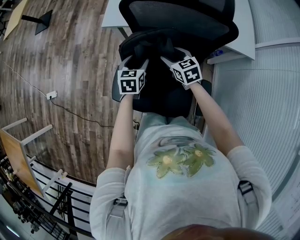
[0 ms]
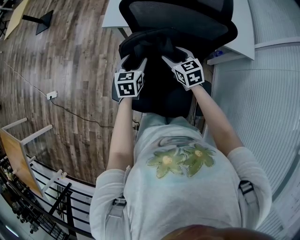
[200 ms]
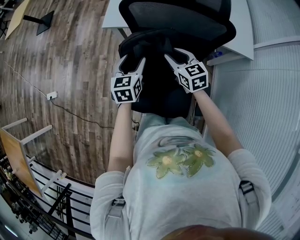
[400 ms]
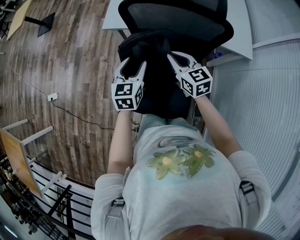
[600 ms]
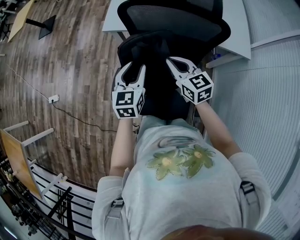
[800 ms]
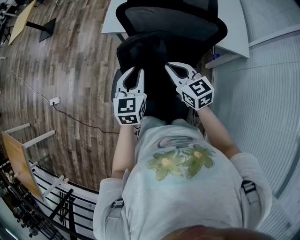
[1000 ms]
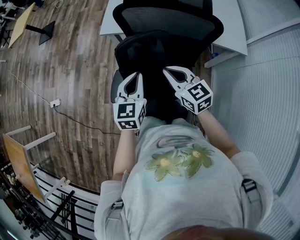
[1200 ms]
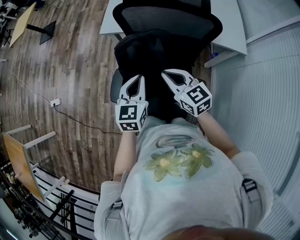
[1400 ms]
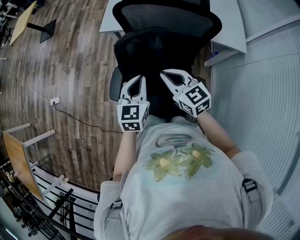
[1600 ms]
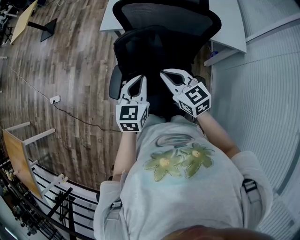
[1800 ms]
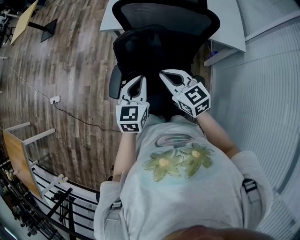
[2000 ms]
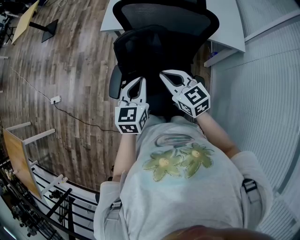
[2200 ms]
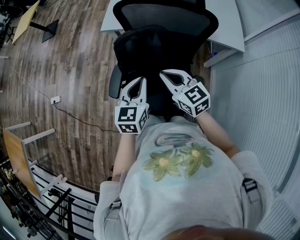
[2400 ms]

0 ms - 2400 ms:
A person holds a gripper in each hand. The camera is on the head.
0 ms - 1200 ms: Both grippers move upward and backward, roughly 20 cm. The left gripper closes its fingers. Meanwhile the right gripper changes its angle by approximately 20 degrees, and closes up.
1200 ms - 2400 ms: Both grippers travel together backward, roughly 5 cm.

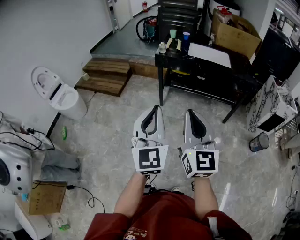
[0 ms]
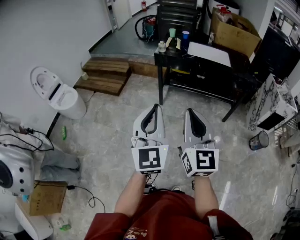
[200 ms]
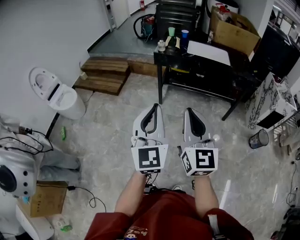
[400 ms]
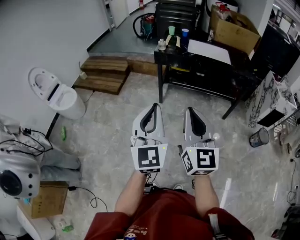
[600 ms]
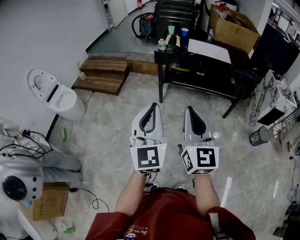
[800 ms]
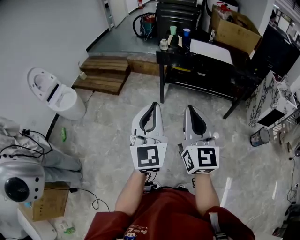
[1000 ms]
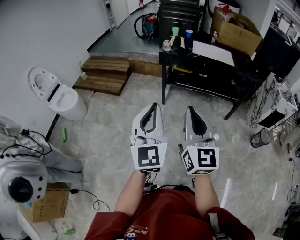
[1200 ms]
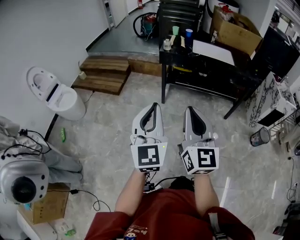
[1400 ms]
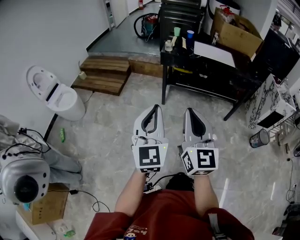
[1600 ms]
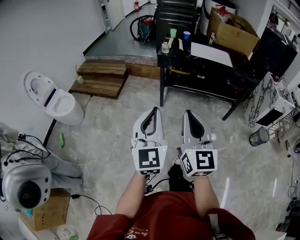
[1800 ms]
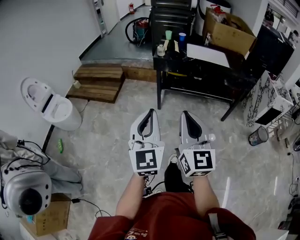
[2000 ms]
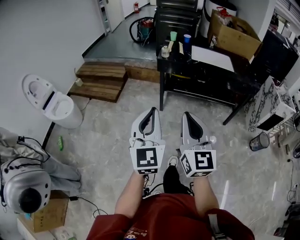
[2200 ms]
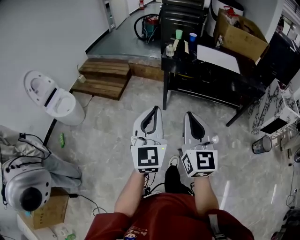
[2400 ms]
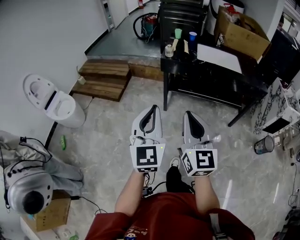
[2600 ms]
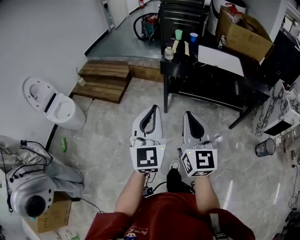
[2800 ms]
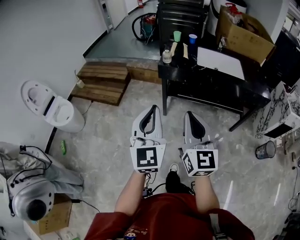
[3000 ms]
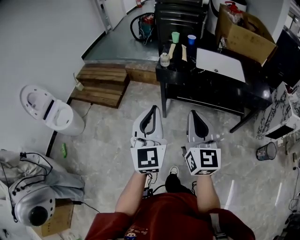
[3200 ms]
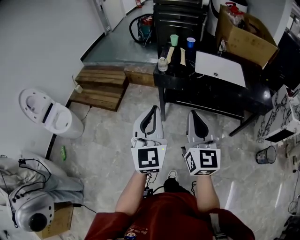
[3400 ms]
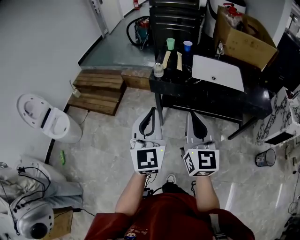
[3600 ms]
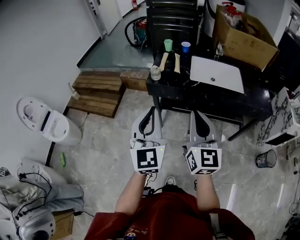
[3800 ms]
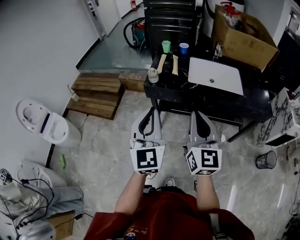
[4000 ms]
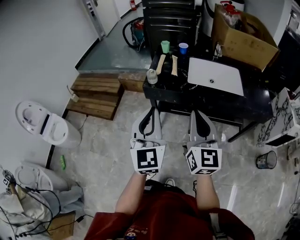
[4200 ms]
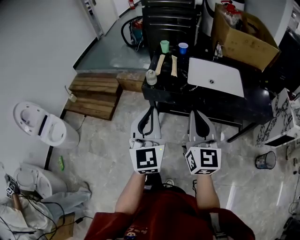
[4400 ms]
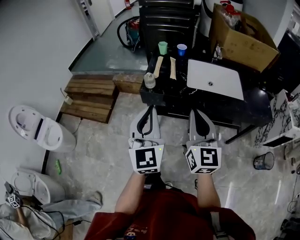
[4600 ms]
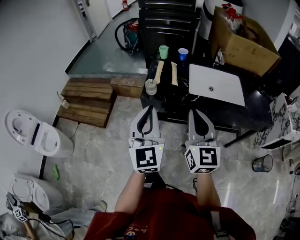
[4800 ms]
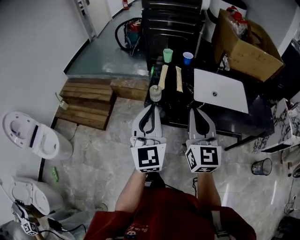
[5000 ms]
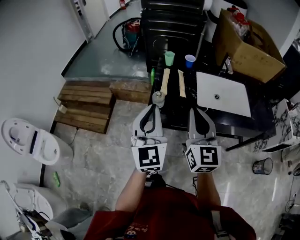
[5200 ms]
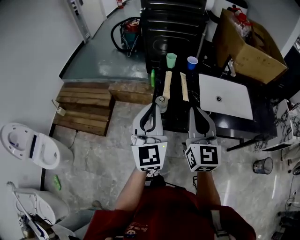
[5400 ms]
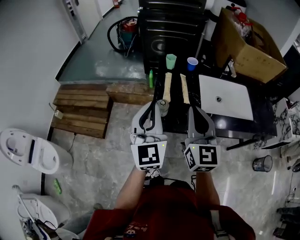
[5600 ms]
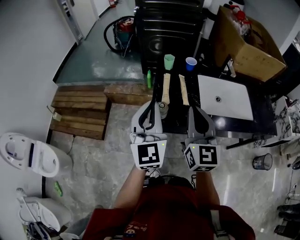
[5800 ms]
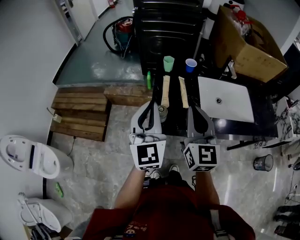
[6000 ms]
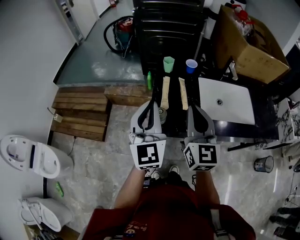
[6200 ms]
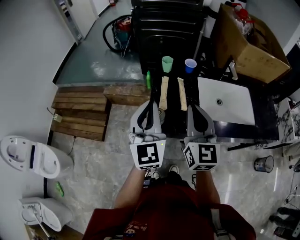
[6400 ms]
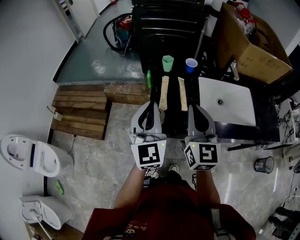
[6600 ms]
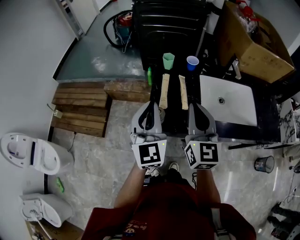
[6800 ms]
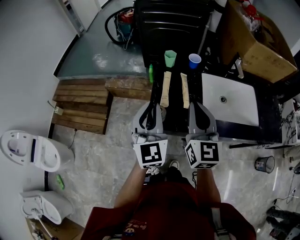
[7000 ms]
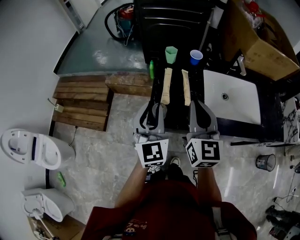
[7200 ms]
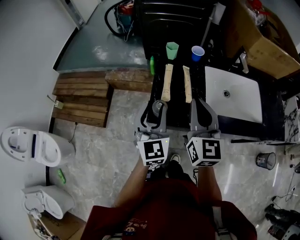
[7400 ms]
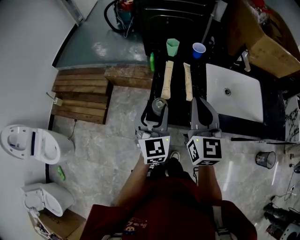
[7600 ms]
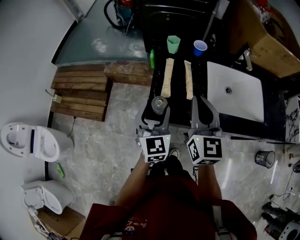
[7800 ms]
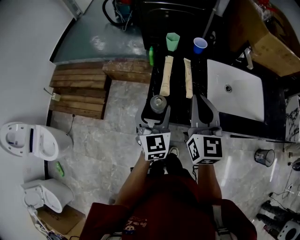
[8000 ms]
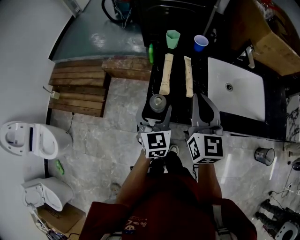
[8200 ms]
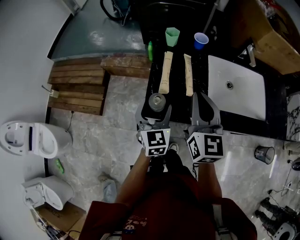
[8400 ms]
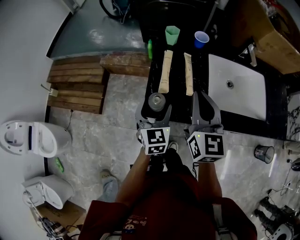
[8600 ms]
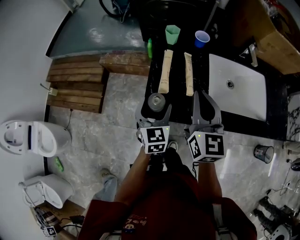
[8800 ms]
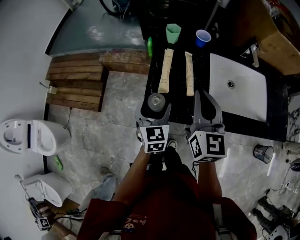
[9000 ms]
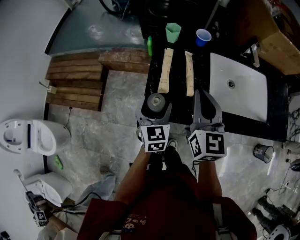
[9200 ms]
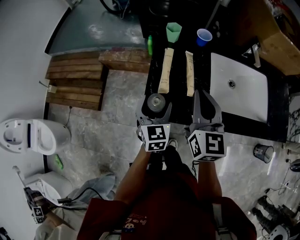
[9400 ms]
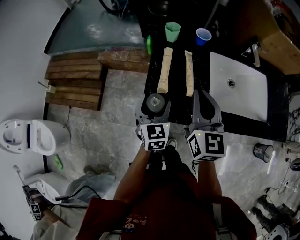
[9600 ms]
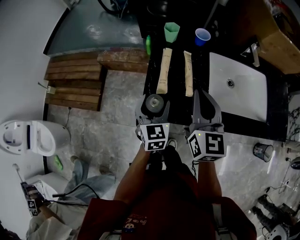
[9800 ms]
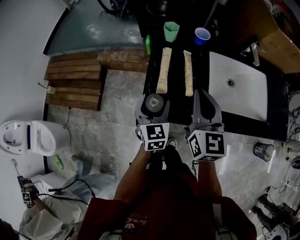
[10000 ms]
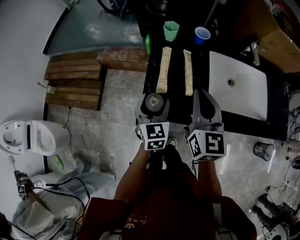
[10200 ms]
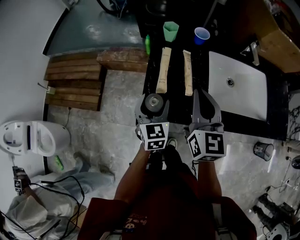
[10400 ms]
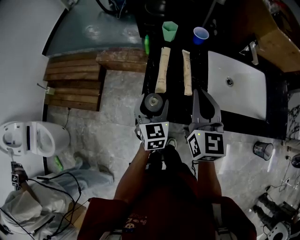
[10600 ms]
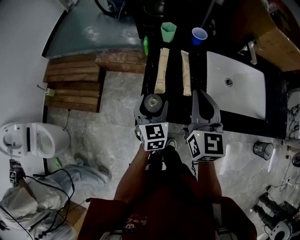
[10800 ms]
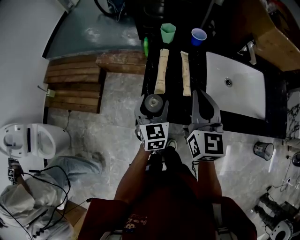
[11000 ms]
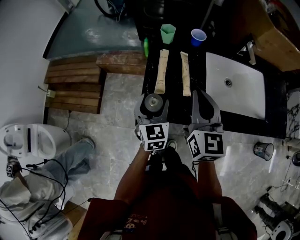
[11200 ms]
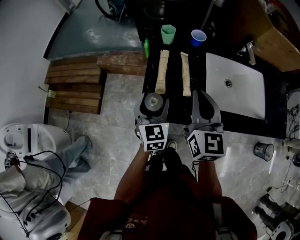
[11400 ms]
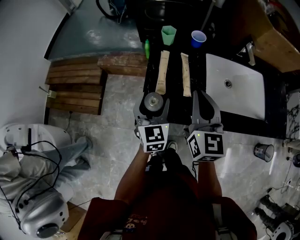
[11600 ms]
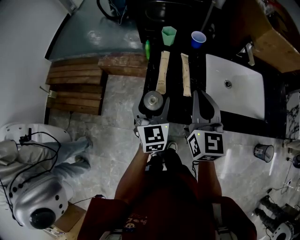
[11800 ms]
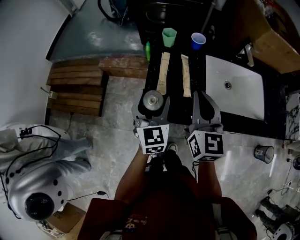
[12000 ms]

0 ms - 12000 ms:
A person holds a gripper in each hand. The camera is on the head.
0 ms - 1600 ms: The grippers both shift to the left by approximately 10 cm.
1600 ms - 3000 ms: The grippers both shift forward by about 25 cm.
3000 ms - 4400 ms: The grippers both shift forward and to the right by roughly 25 cm.
4400 ms - 6000 ms: The left gripper moves forward, roughly 30 cm. Meanwhile the right gripper goes about 30 cm forward and to the left.
6000 ms - 7600 ms: The right gripper heads forward and downward, covering about 10 cm. Meanwhile the left gripper travels downward by about 15 cm, and opens its fingers.
7600 ms - 9000 ms: The right gripper ends up roughly 5 cm from where it was. The left gripper is displaced downward by approximately 10 cm, and opens its fingers.
9000 ms - 10400 ms: The grippers move only a little.
10400 ms - 12000 ms: The left gripper goes about 10 cm upward.

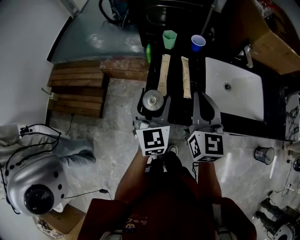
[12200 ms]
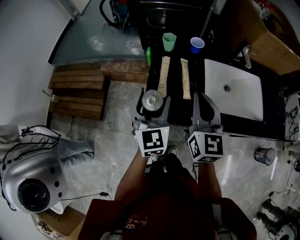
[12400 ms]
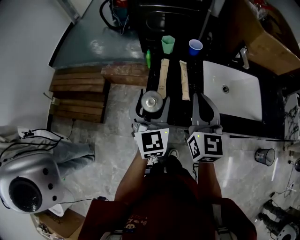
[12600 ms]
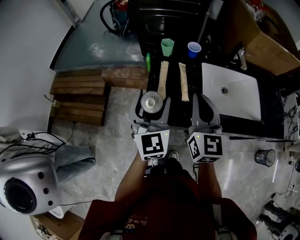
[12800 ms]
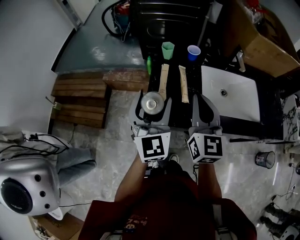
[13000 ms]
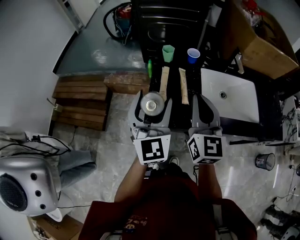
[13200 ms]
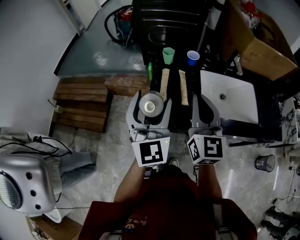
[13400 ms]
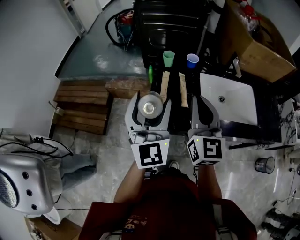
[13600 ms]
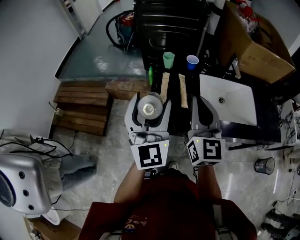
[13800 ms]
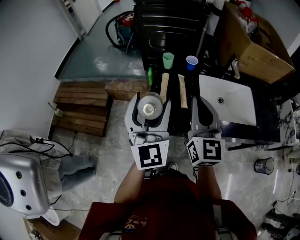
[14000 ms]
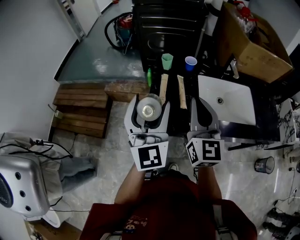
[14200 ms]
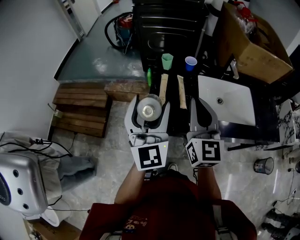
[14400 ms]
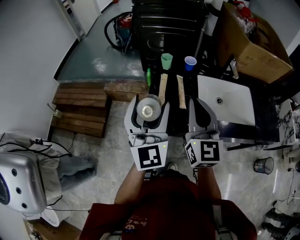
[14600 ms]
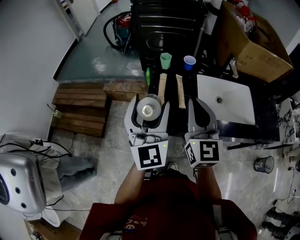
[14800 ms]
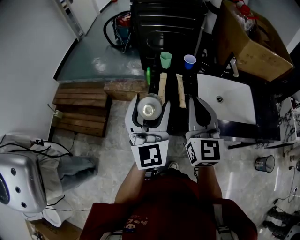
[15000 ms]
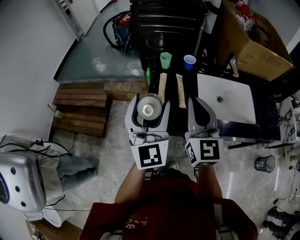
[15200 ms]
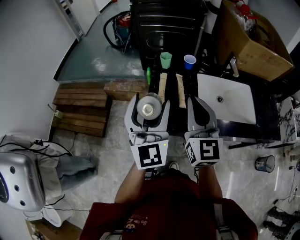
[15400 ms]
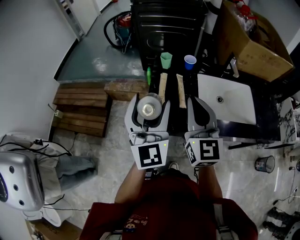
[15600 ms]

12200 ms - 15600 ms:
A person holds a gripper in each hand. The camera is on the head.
12200 ms - 13800 ms: The left gripper heads upward and backward, covering about 20 cm, and rotates about 20 degrees; the right gripper moves upward and backward, roughly 10 cm.
13800 ms - 15600 ms: The grippers stay close to where they were, moving slightly.

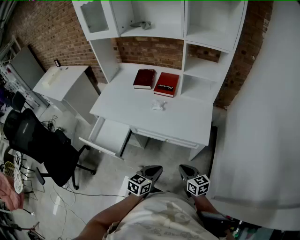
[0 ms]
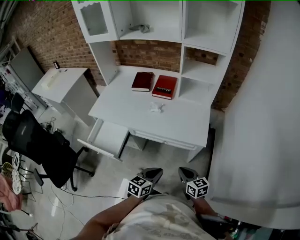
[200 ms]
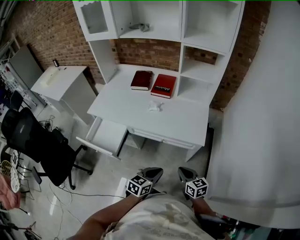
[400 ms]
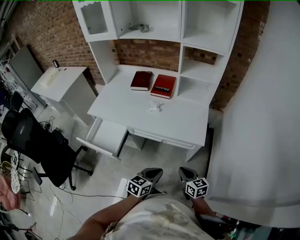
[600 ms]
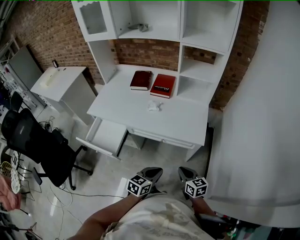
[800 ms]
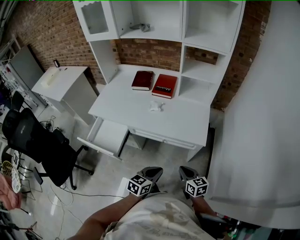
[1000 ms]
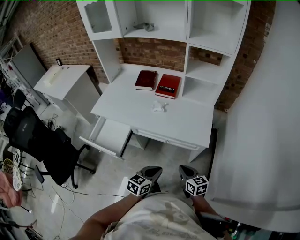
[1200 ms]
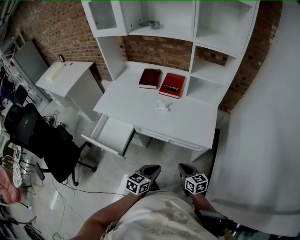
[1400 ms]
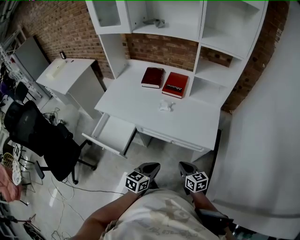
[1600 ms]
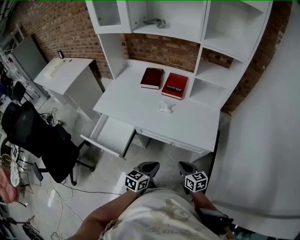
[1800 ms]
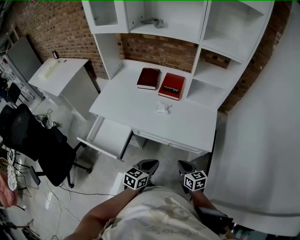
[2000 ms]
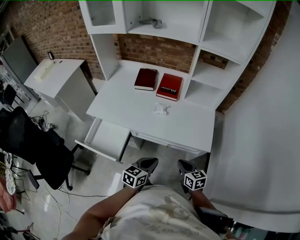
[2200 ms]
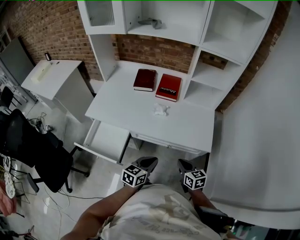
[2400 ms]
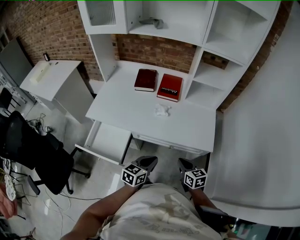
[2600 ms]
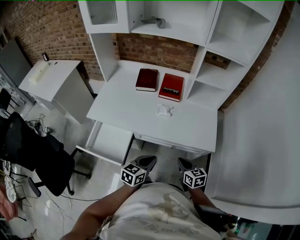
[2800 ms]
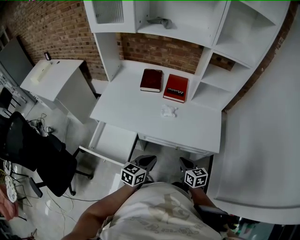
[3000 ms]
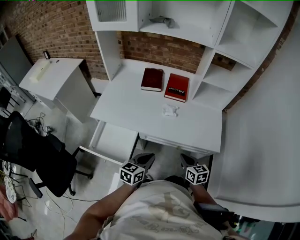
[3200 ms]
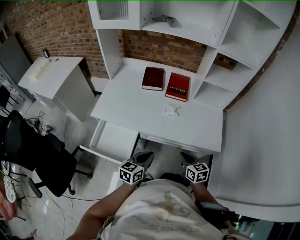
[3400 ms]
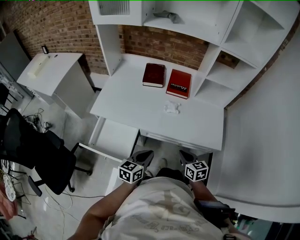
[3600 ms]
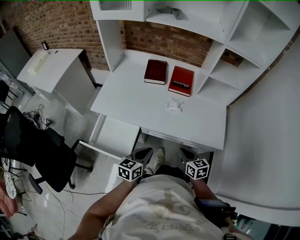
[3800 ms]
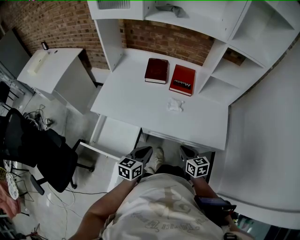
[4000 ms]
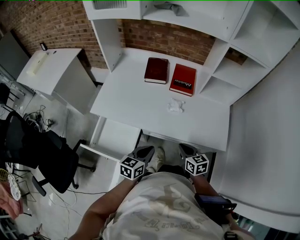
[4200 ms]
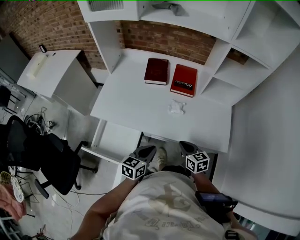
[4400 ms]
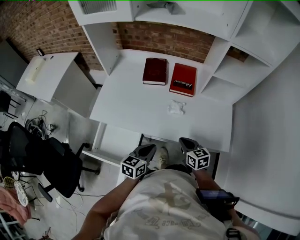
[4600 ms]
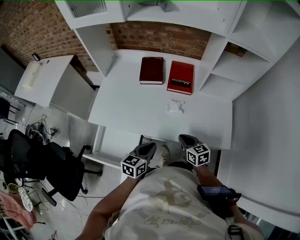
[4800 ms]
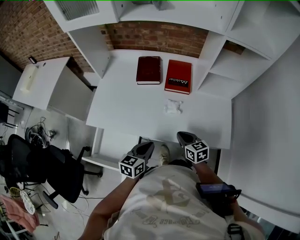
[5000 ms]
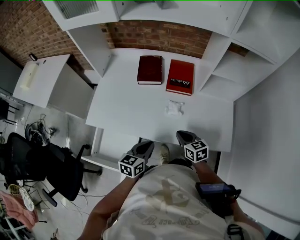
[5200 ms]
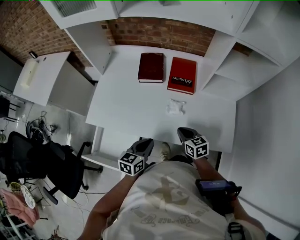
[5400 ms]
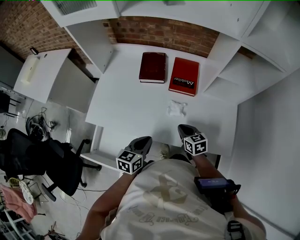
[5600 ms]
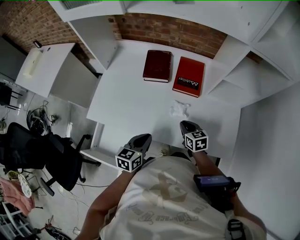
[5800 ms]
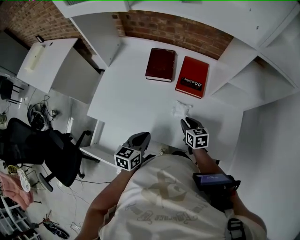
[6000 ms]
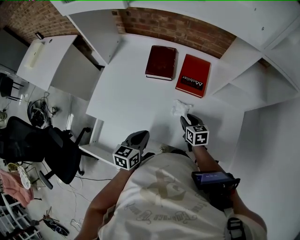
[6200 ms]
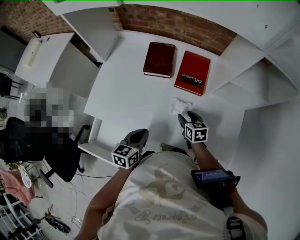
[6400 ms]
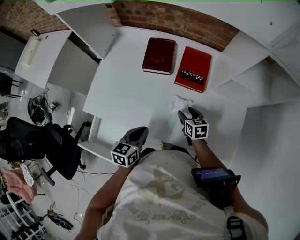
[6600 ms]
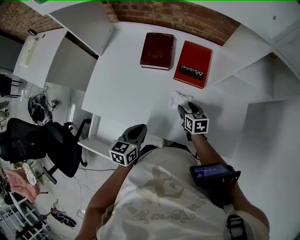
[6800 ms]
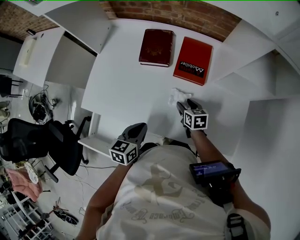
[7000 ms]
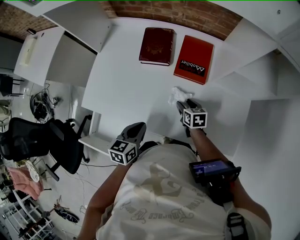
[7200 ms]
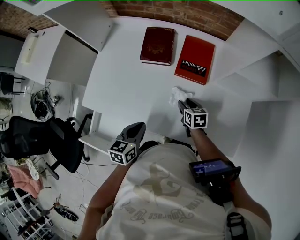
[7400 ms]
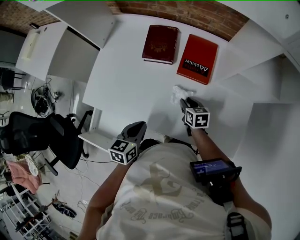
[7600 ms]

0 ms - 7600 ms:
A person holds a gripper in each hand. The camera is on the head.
0 ms - 1600 ms: The left gripper changes place by about 5 cm.
1600 ms - 3000 ms: The two grippers go some 15 cm to the left and forward.
3000 ms - 4600 ms: The two grippers go some 15 cm forward and to the left.
4600 ms - 6000 ms: Both grippers move forward, about 15 cm.
6000 ms - 7600 ms: The right gripper travels downward and forward by roughly 10 cm, and opens, then closes again.
